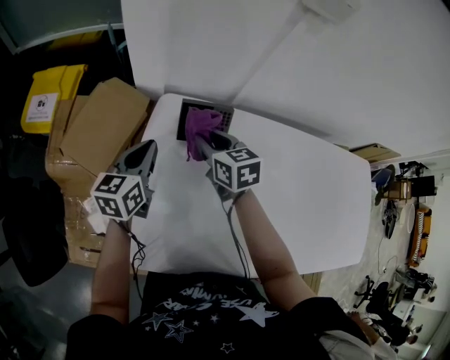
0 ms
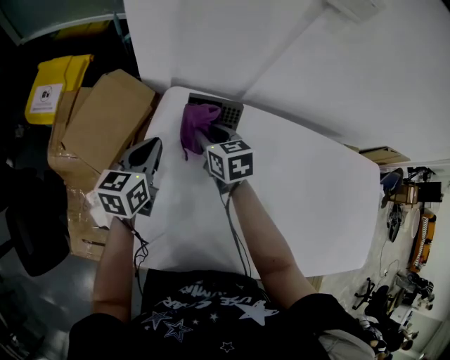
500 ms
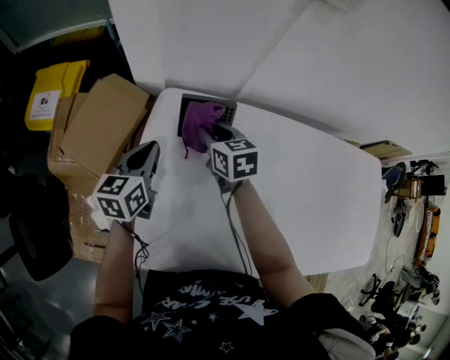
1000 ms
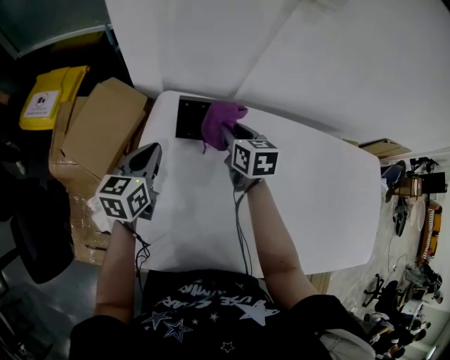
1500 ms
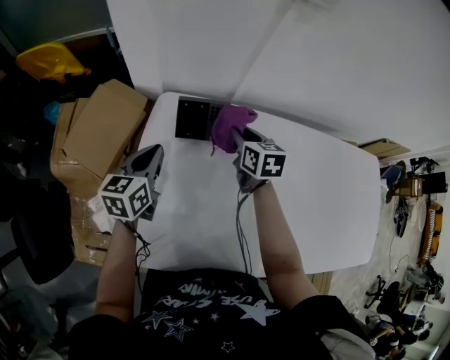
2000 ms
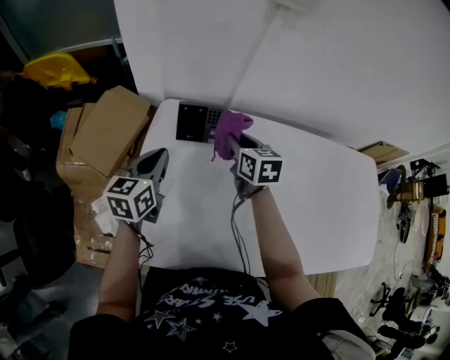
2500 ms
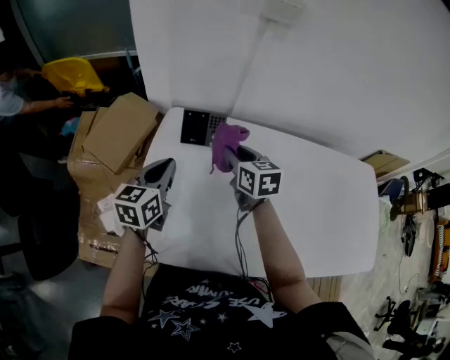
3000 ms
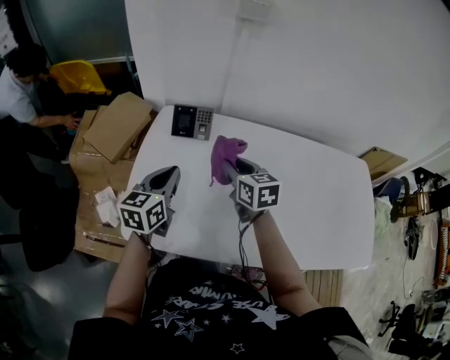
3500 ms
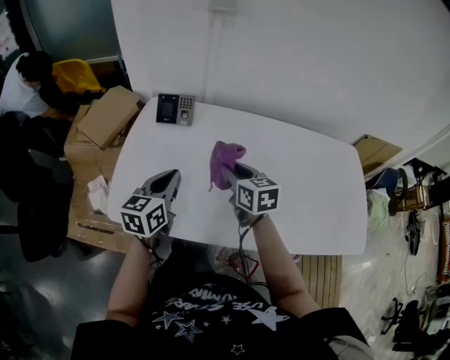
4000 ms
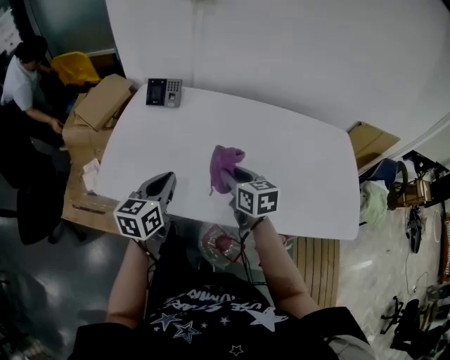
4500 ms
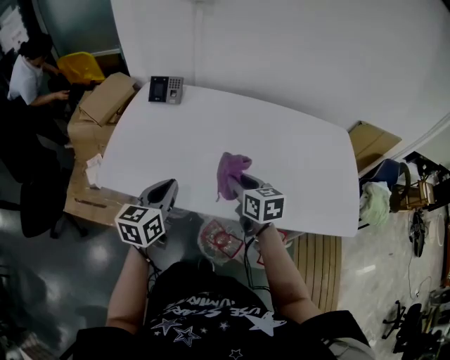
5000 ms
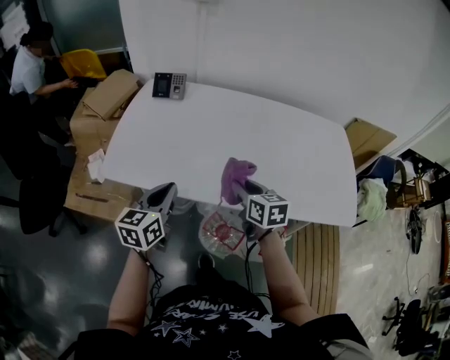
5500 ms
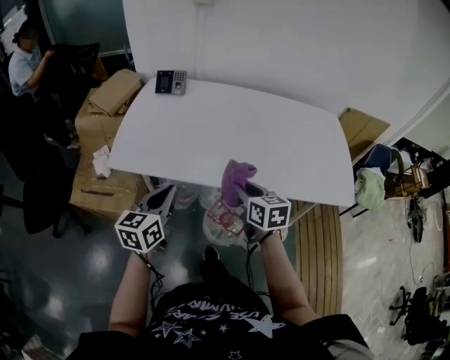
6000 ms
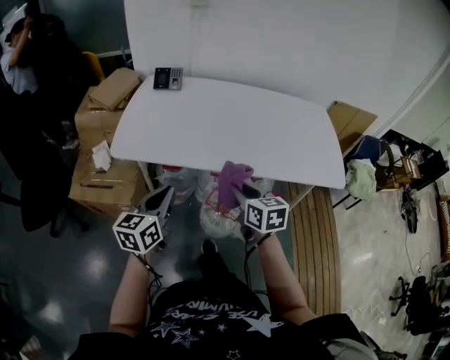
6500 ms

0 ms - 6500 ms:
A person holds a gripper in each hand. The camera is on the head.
0 ms - 2000 ms: The right gripper goes some 10 cm to the right.
2000 ms - 4500 ms: Both grippers are carried backward and to the right, approximately 40 cm.
4500 ms - 6500 ms: The grippers both shift backward by roughly 30 cm.

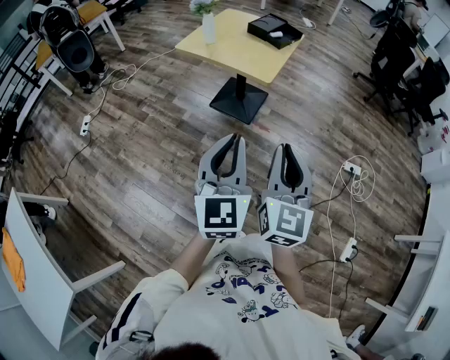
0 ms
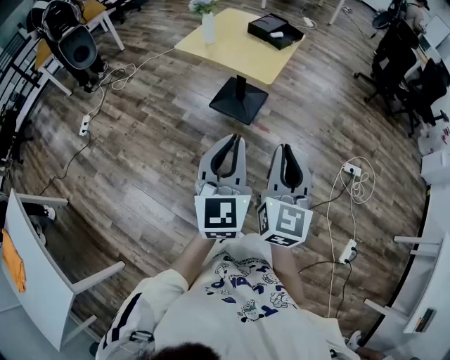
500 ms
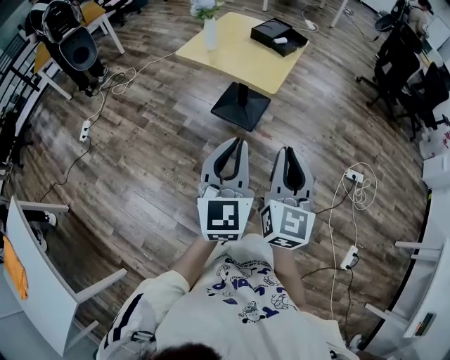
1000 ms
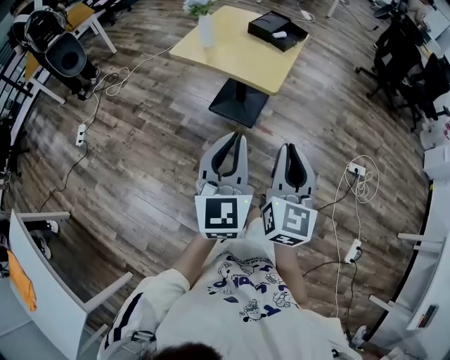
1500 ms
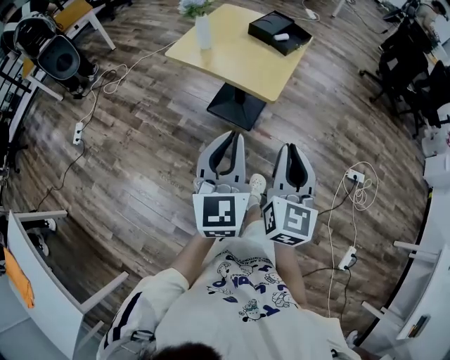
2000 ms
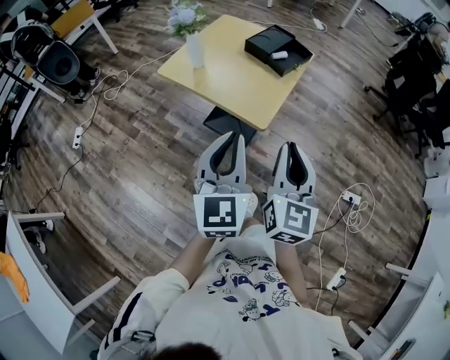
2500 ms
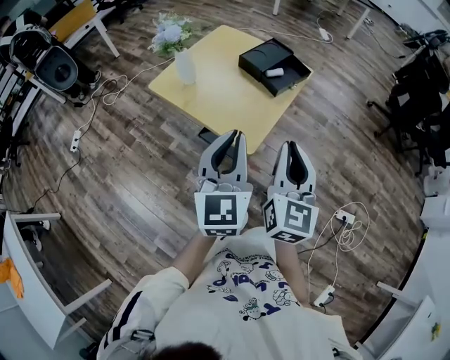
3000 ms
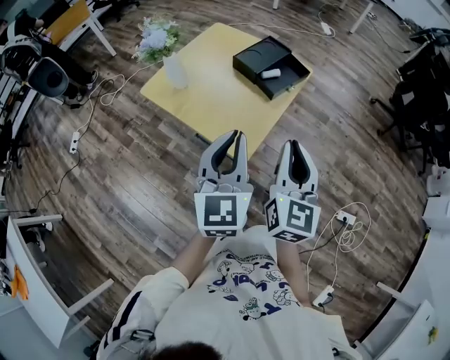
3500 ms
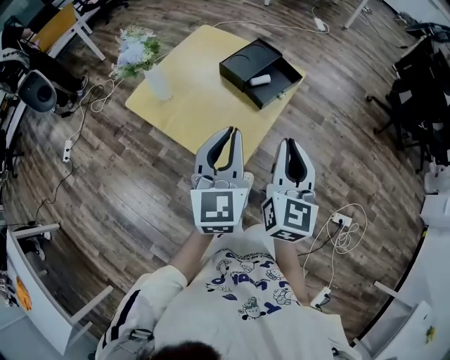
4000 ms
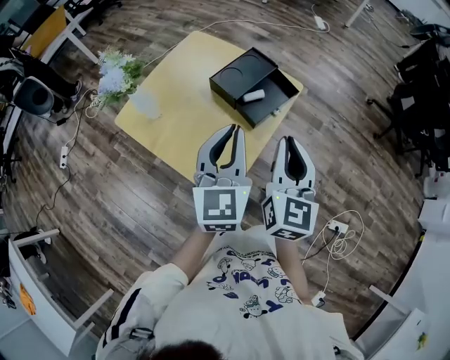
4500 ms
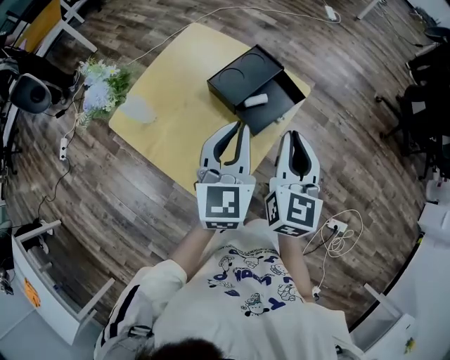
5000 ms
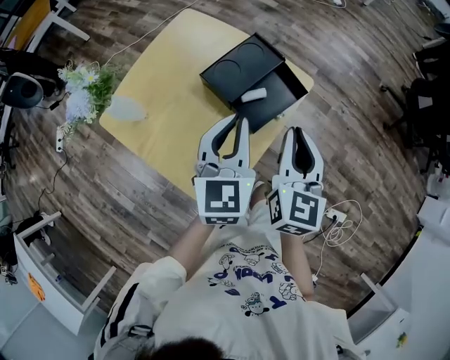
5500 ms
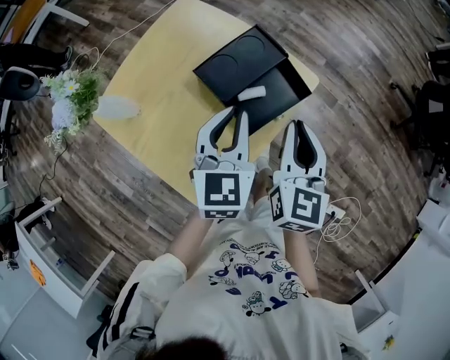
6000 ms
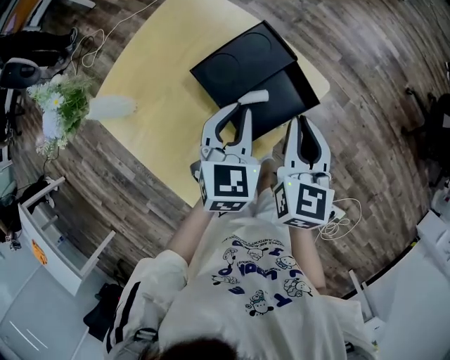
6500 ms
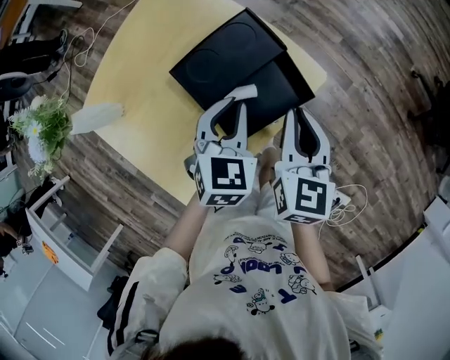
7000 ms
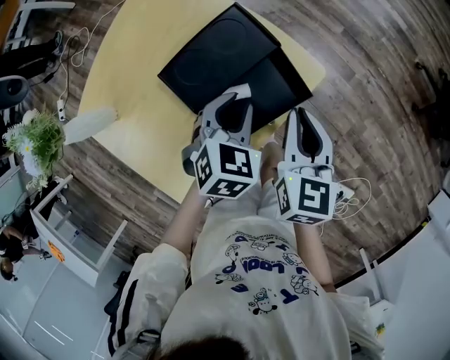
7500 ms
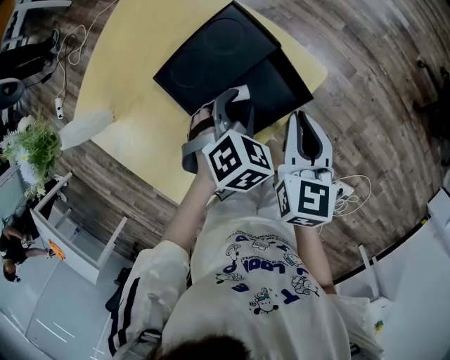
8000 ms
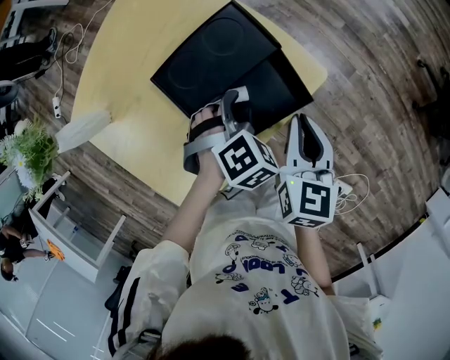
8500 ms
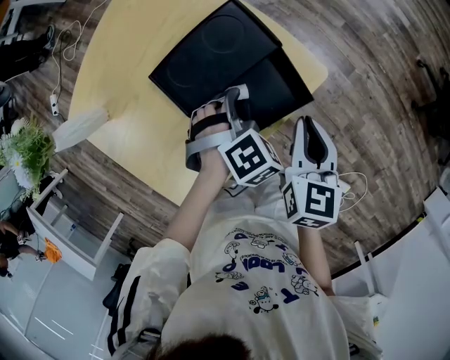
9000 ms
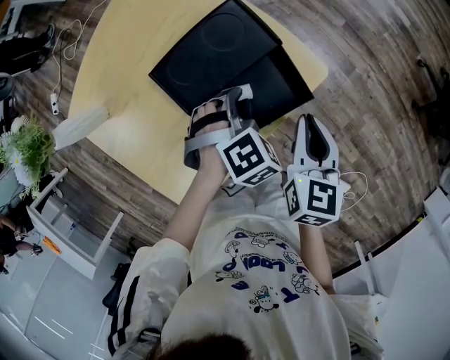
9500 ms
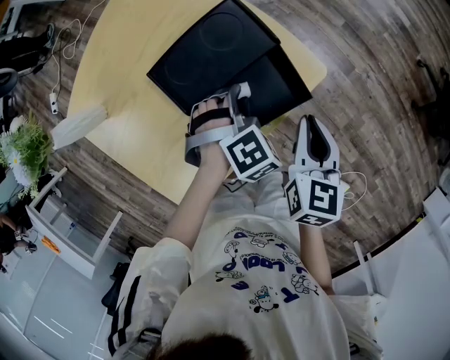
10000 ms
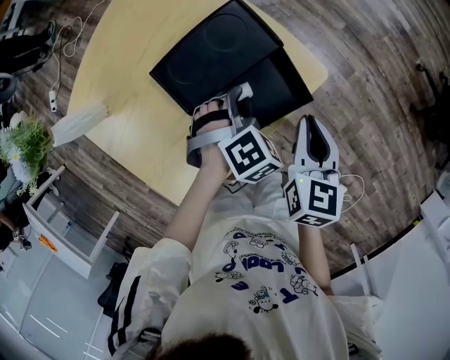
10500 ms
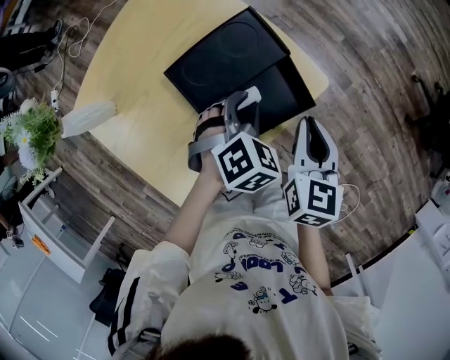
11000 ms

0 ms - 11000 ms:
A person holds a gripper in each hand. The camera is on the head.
0 ms - 2000 ms: The grippers both shift forward by roughly 15 cm.
2000 ms - 3500 ms: The right gripper is displaced forward by some 30 cm. Meanwhile the left gripper travels forward and to the right by some 30 cm.
3500 ms - 5500 ms: Both grippers move forward, about 25 cm.
5500 ms - 7500 ms: The left gripper shifts some 20 cm downward and forward, and tips its fingers downward by approximately 40 degrees; the right gripper heads downward, forward and to the right, covering approximately 15 cm.
7500 ms - 9000 ms: The left gripper travels downward by about 5 cm, and turns by approximately 30 degrees.
9000 ms - 11000 ms: The grippers stay close to where they were, moving slightly.

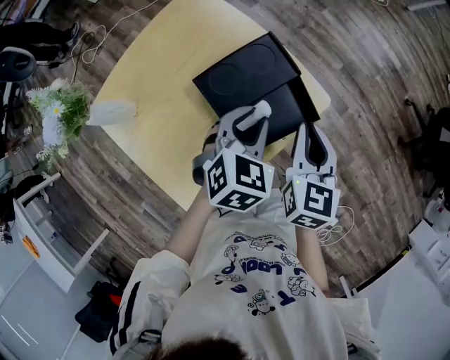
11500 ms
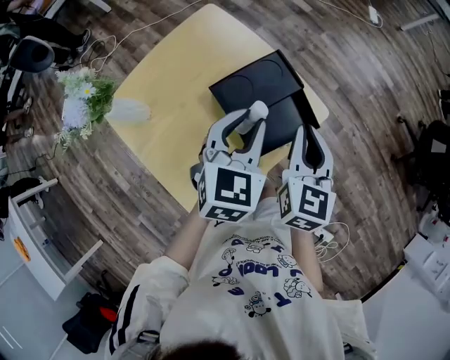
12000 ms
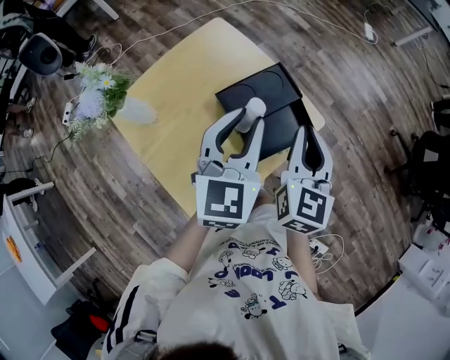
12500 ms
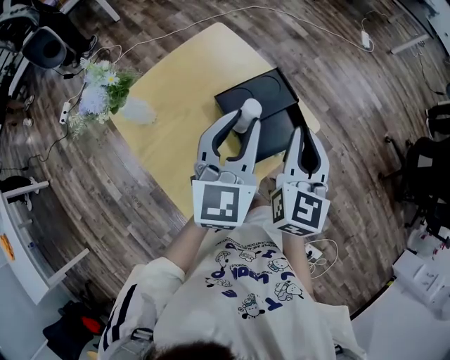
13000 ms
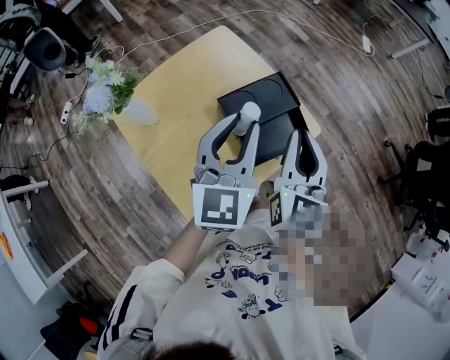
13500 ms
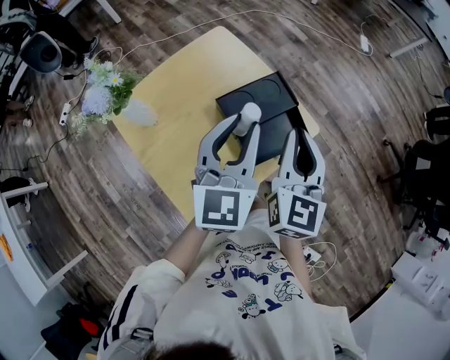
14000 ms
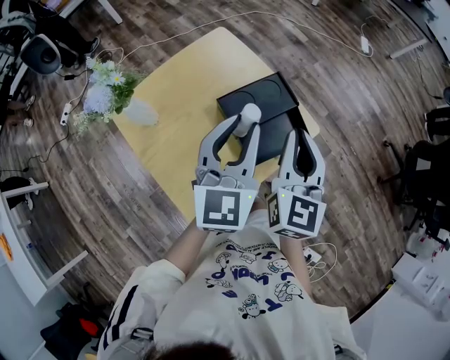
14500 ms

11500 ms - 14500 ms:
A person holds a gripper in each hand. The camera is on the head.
11500 ms - 13000 ms: The grippers both shift upward and to the left by some 15 cm. The left gripper angles its fingers upward, by about 40 degrees.
13000 ms - 14500 ms: There are only small adjustments of the grippers.

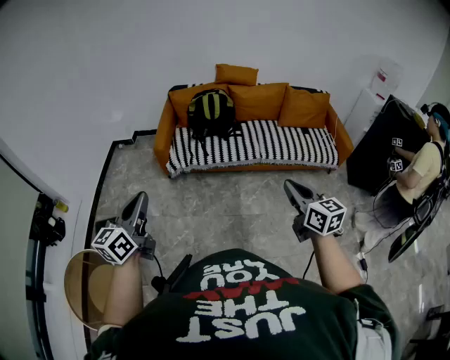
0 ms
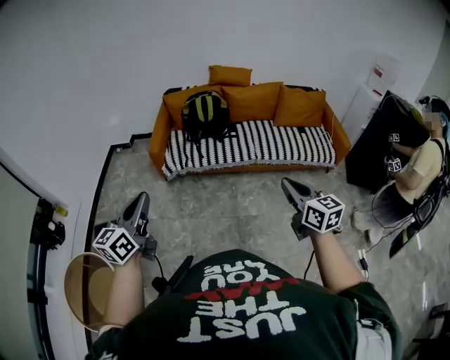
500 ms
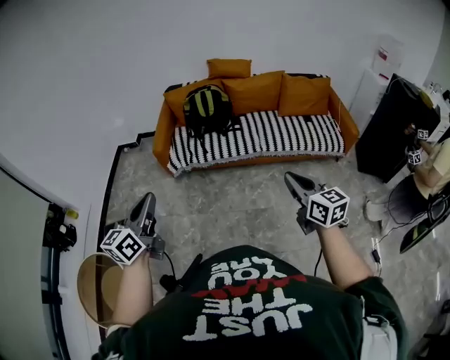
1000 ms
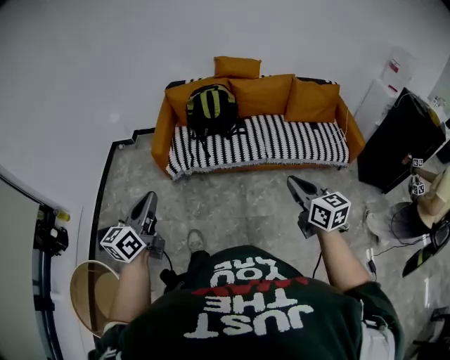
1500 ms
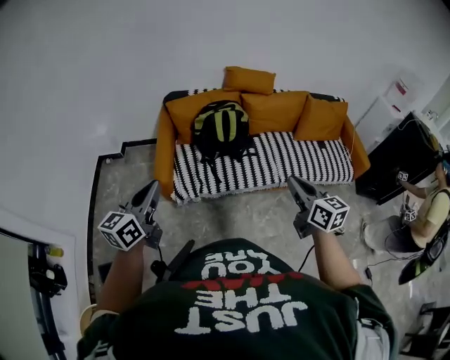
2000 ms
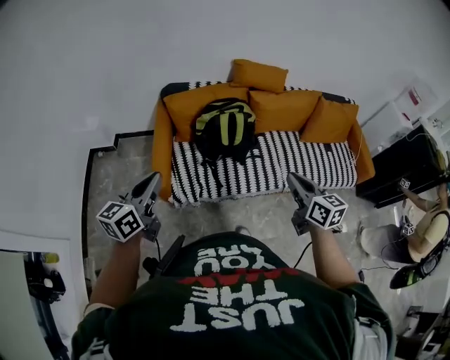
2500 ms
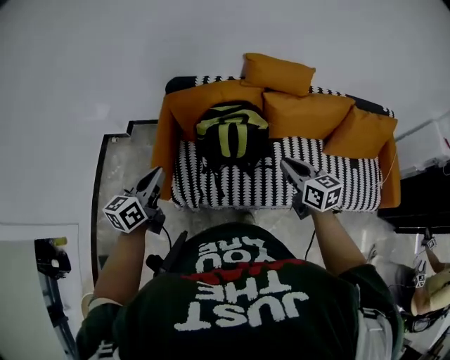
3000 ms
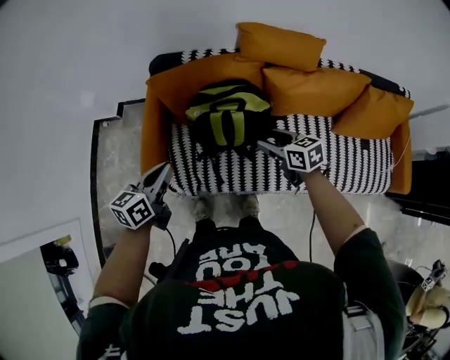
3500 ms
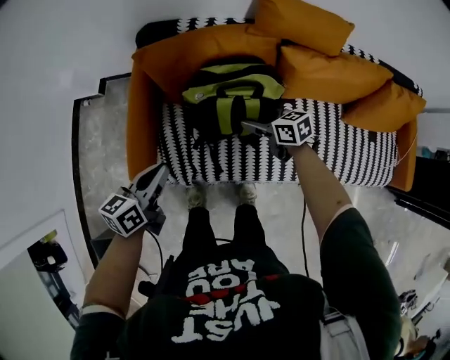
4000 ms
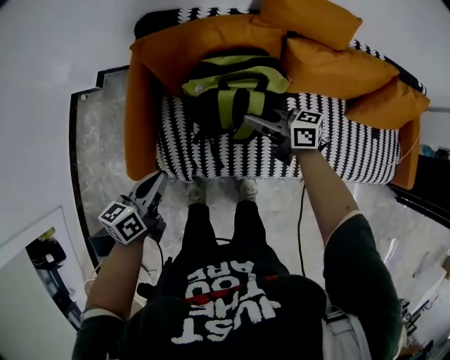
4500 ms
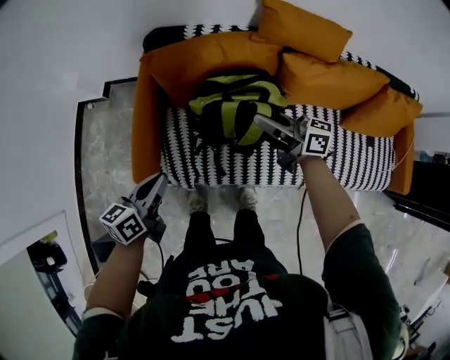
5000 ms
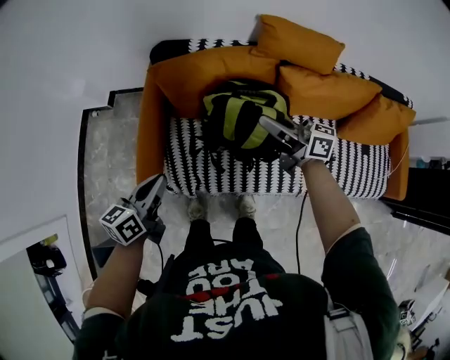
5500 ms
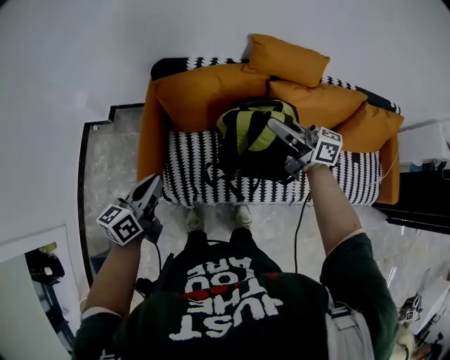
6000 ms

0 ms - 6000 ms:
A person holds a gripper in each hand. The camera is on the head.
0 ms - 2000 ms: The two grippers go roughly 35 cm forward.
2000 ms - 4000 ms: Both grippers move forward and downward, about 50 cm. The right gripper turns by roughly 50 degrees, and opens its fingers, while the left gripper rotates some 30 degrees.
4000 ms - 6000 ms: The right gripper goes some 25 cm upward, angles its fingers upward, by approximately 40 degrees, and closes up. Meanwhile the left gripper goes approximately 10 cm upward.
